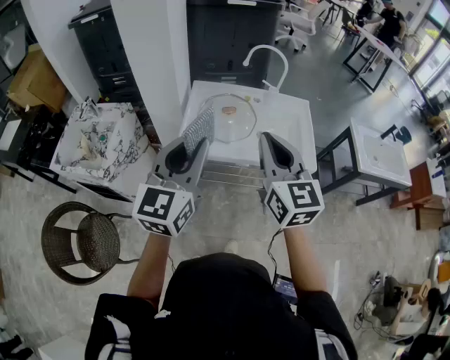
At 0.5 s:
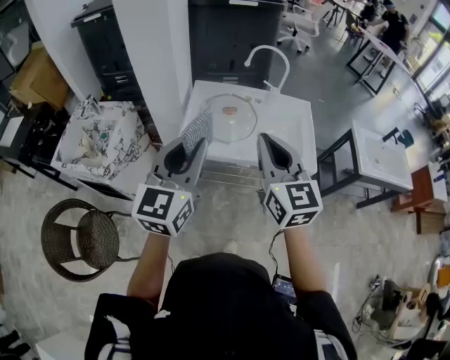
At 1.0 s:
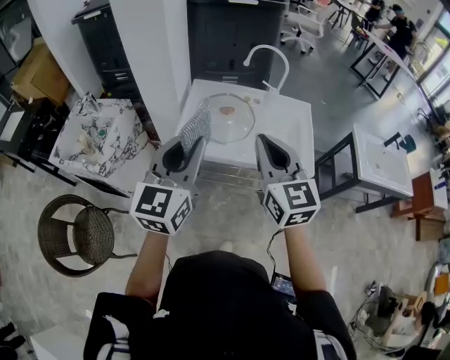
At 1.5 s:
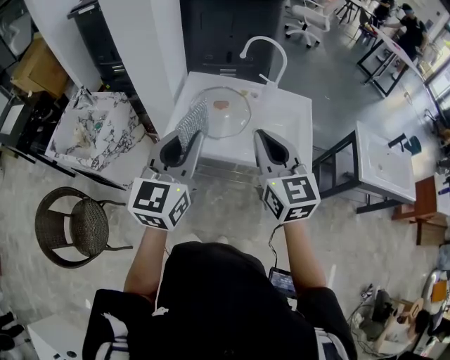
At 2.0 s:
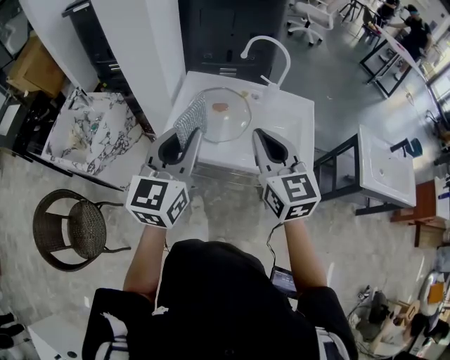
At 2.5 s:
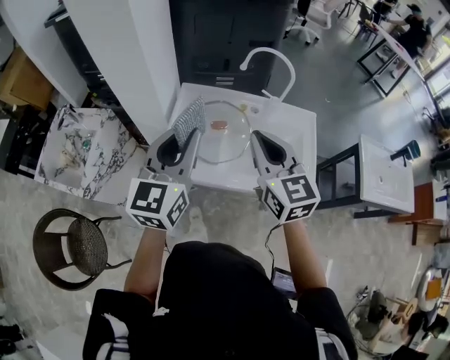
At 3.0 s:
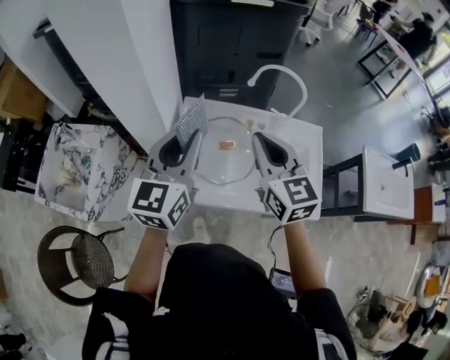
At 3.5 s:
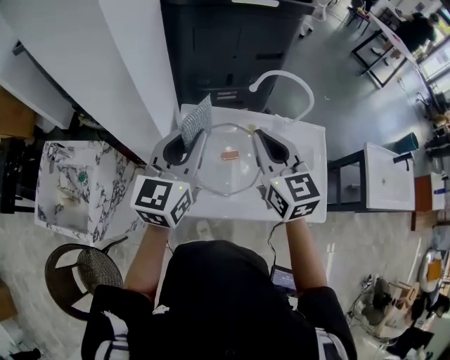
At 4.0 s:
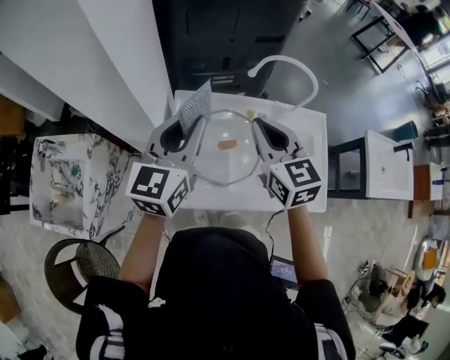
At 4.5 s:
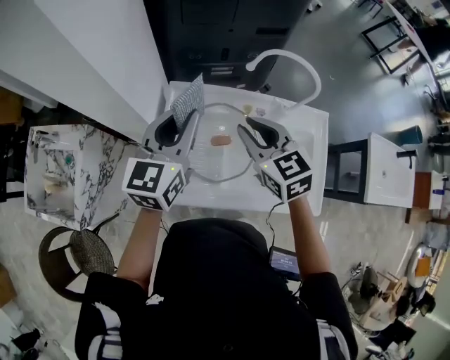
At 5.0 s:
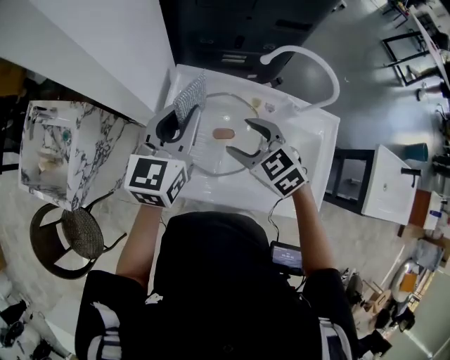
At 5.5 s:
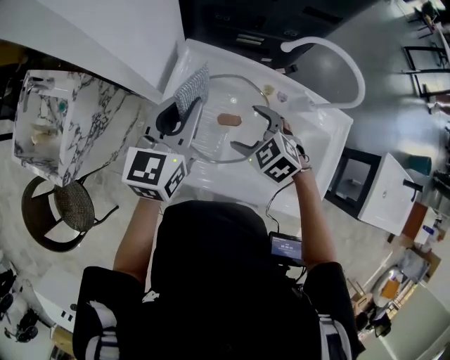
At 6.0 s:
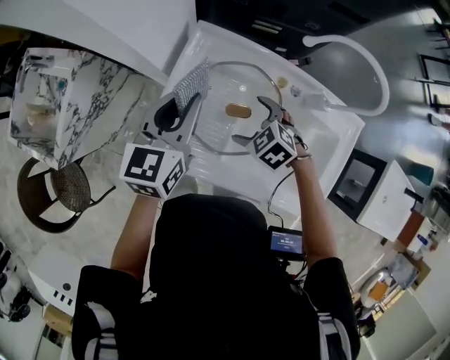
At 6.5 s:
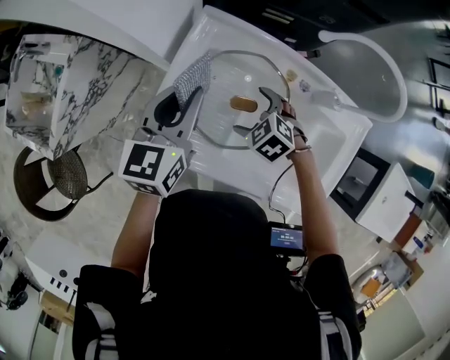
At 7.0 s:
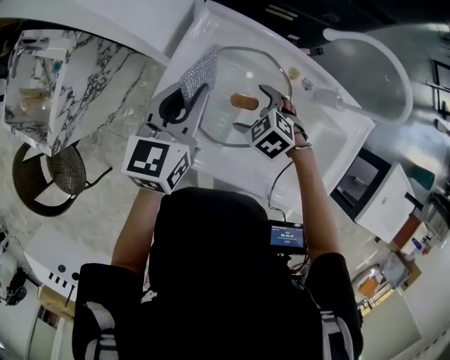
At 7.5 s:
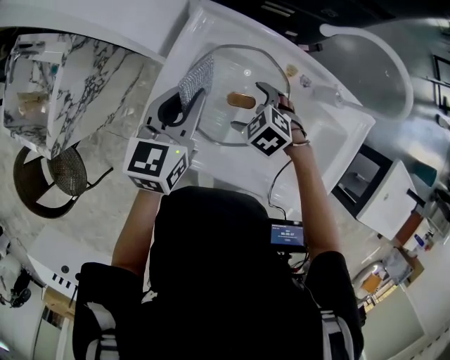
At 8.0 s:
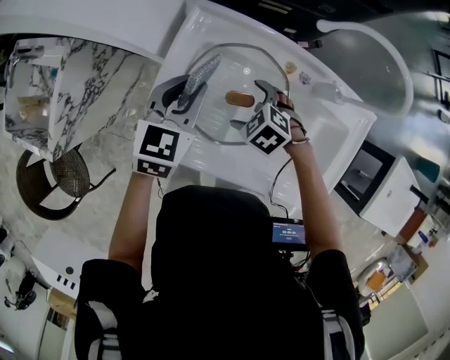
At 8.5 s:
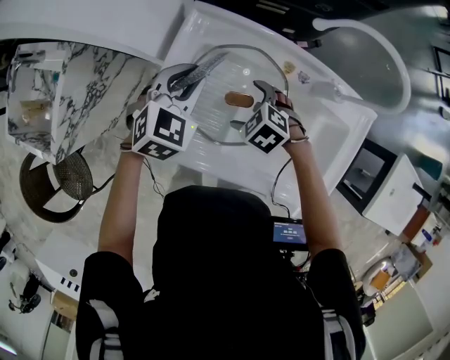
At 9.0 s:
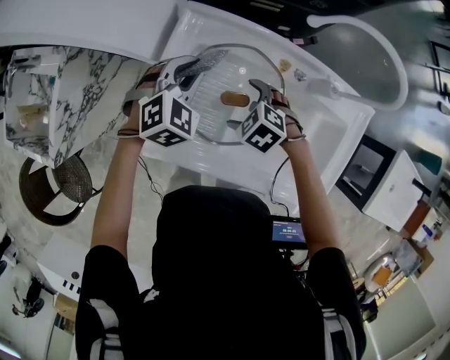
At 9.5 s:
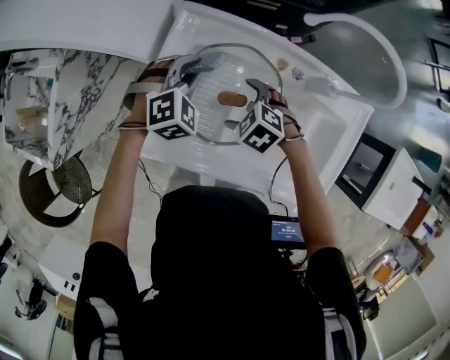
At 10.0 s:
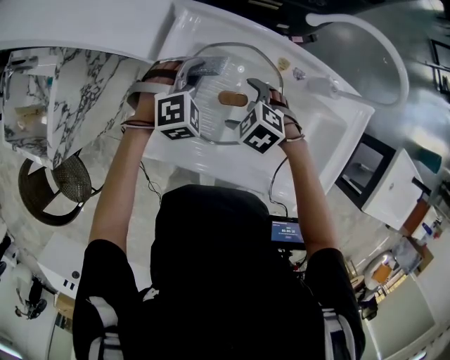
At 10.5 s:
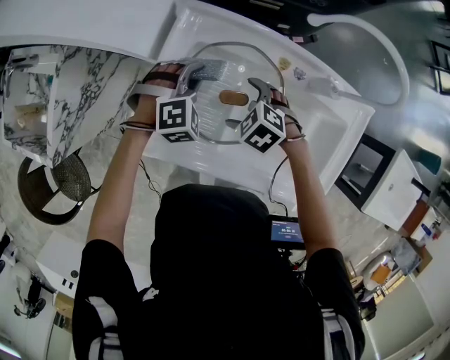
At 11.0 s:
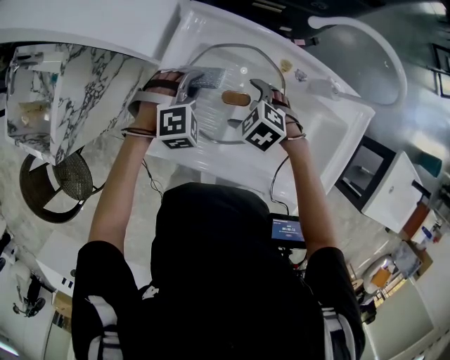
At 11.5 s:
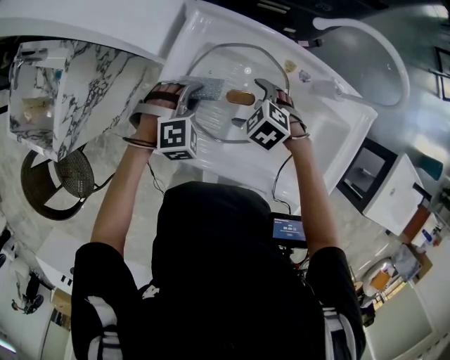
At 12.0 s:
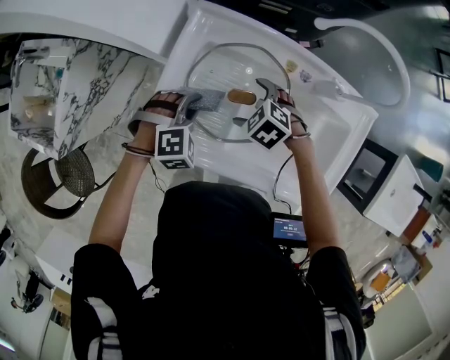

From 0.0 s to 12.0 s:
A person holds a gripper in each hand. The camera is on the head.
From 0.0 s to 2.0 s: The left gripper moves forward and to the right, roughly 10 cm. Meanwhile the right gripper travels forward, to the right and downward by some 15 cm.
From 2.0 s to 4.0 s: Both grippers move forward, roughly 30 cm.
From 4.0 s to 6.0 s: The left gripper goes about 15 cm downward, and swivels roughly 20 degrees; the right gripper goes some 30 cm downward, angles its fingers downward, by some 50 degrees, and opens.
From 6.0 s to 8.0 s: The left gripper moves downward, approximately 10 cm, and rotates approximately 20 degrees.
From 8.0 s to 10.0 s: The left gripper travels downward by about 10 cm, and rolls clockwise, seen from behind, by roughly 60 degrees.
From 10.0 s to 12.0 s: The left gripper moves backward and to the left, about 10 cm.

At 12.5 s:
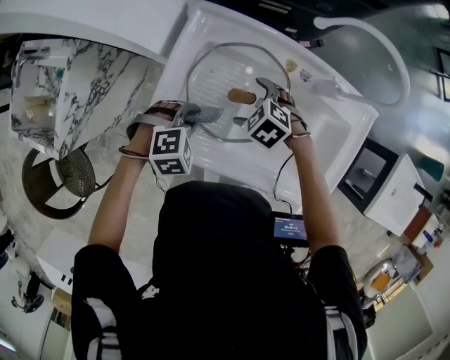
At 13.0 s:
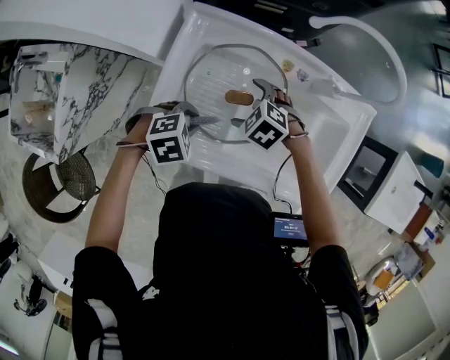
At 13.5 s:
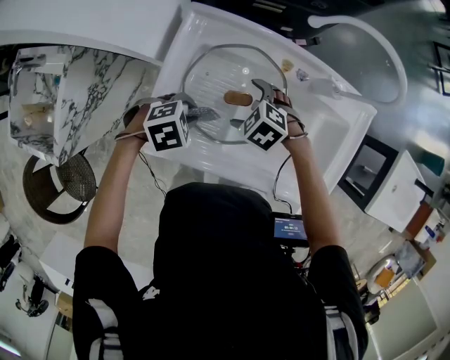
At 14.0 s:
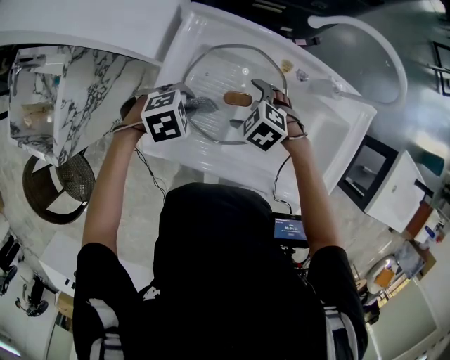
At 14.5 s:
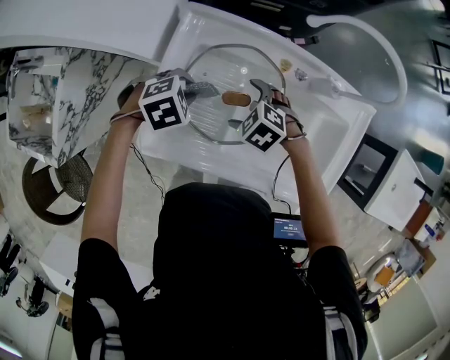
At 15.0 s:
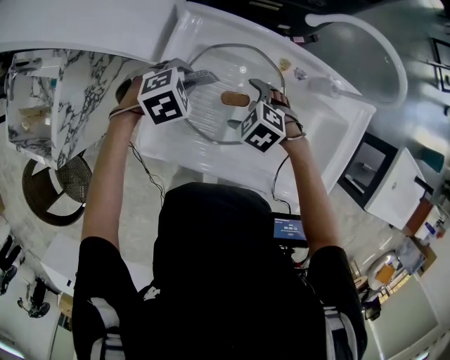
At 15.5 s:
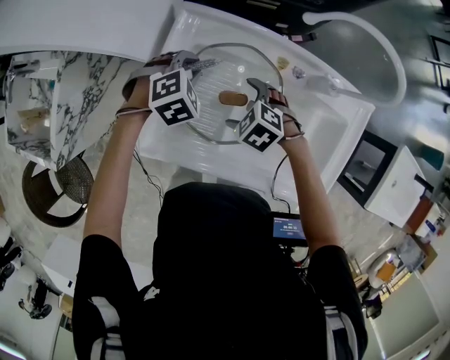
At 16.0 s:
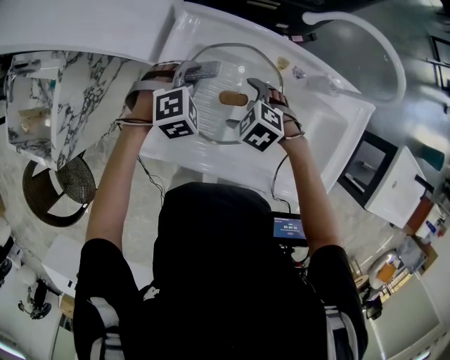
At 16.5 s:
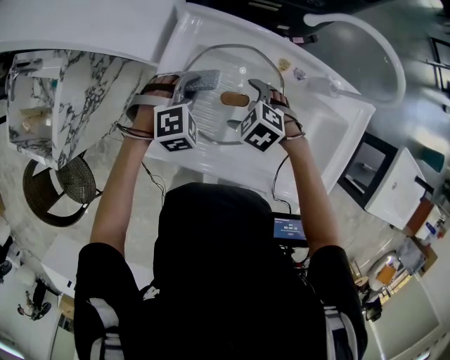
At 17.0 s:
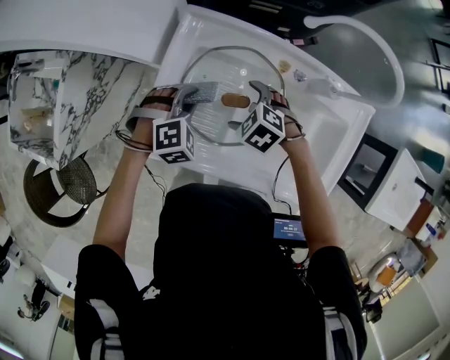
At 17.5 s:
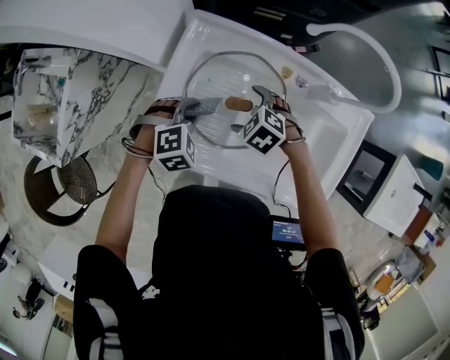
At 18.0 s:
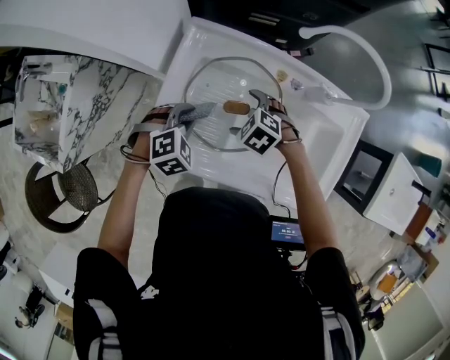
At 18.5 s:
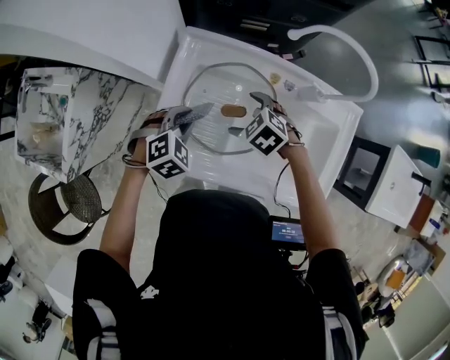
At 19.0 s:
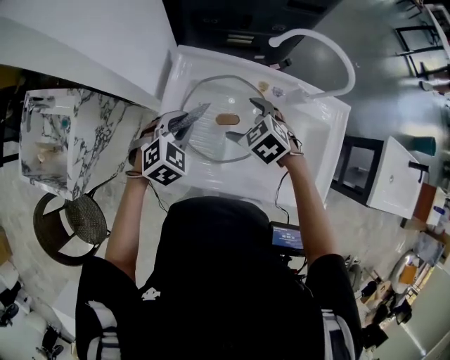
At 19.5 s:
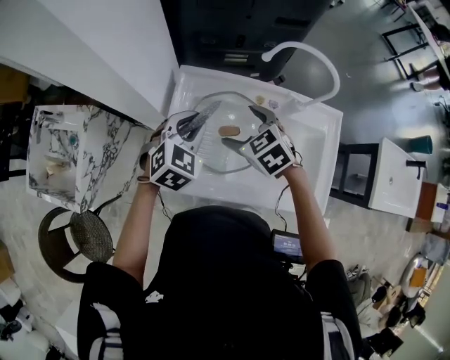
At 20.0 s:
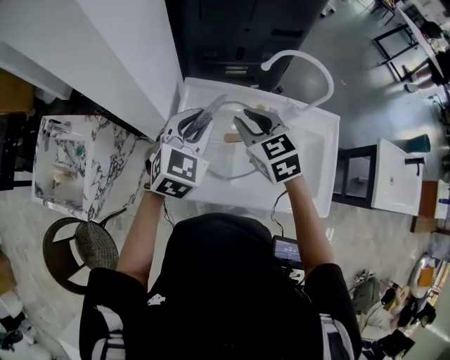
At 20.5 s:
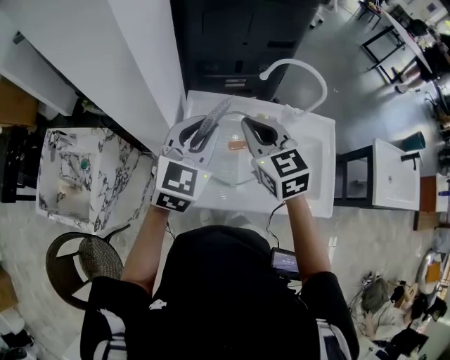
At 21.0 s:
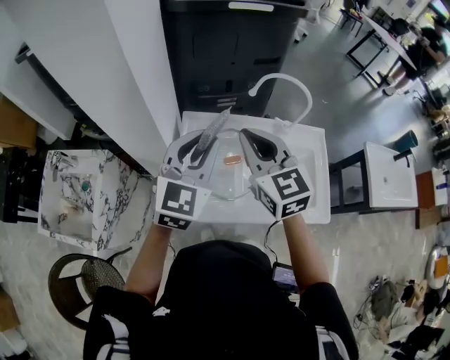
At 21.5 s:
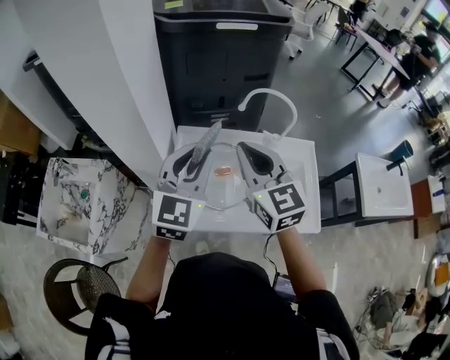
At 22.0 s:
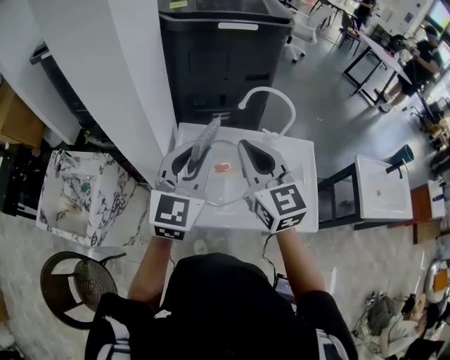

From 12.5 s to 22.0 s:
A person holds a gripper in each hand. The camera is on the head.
From 12.5 s to 14.5 s: The left gripper changes place by approximately 10 cm.
From 14.5 s to 16.5 s: The left gripper swivels about 30 degrees.
From 16.5 s to 18.0 s: The left gripper shifts about 5 cm backward.
From 18.0 s to 20.0 s: Both grippers move upward, approximately 25 cm. The right gripper angles its fingers upward, by roughly 40 degrees, and closes its fingers; the left gripper angles its fingers upward, by approximately 40 degrees.
From 20.0 s to 22.0 s: Both grippers move upward and backward, about 20 cm. The right gripper swivels some 30 degrees, while the left gripper changes its angle by roughly 30 degrees.

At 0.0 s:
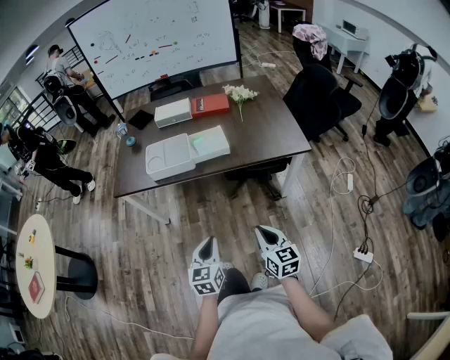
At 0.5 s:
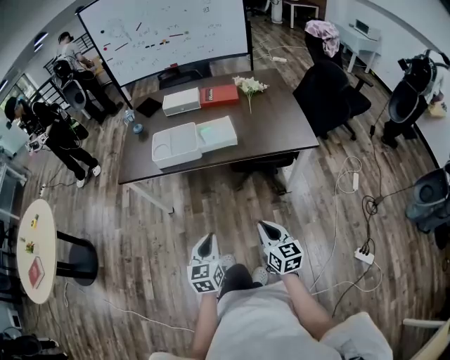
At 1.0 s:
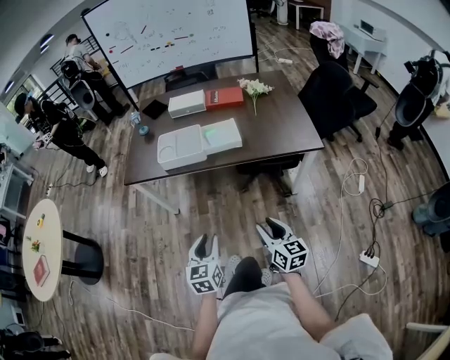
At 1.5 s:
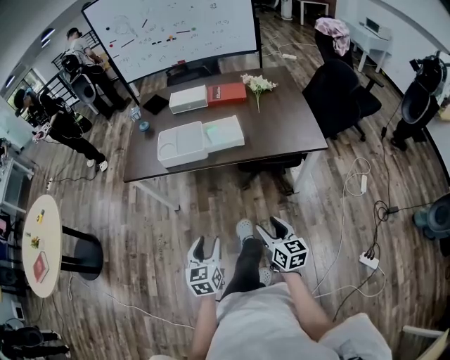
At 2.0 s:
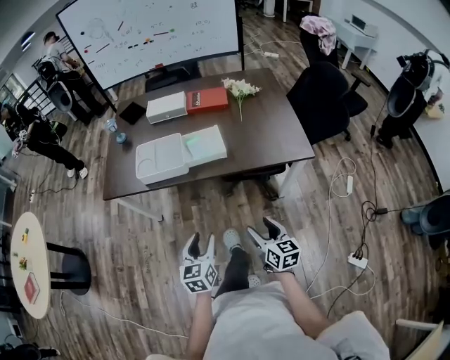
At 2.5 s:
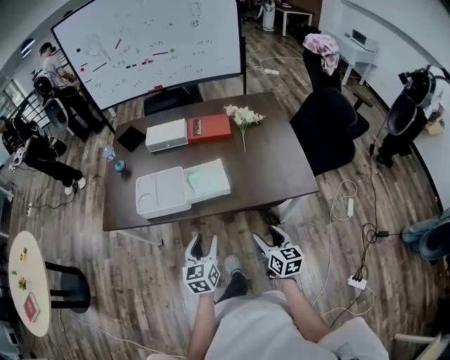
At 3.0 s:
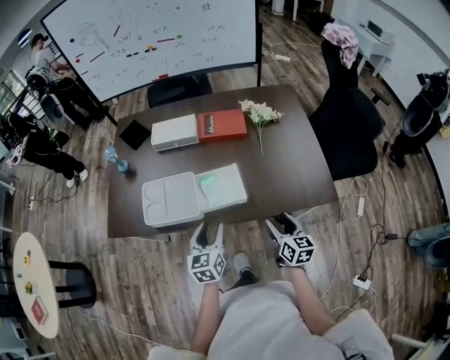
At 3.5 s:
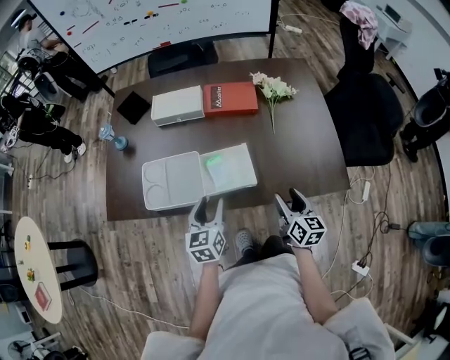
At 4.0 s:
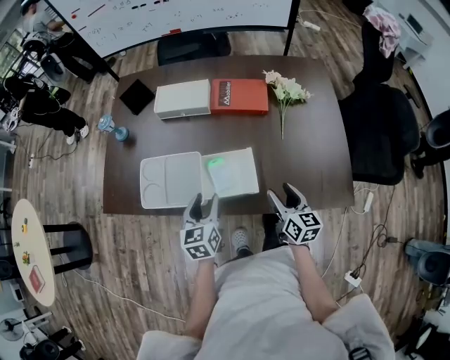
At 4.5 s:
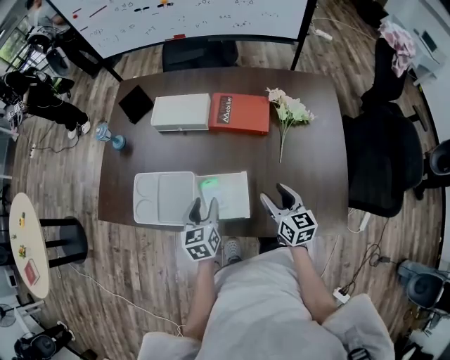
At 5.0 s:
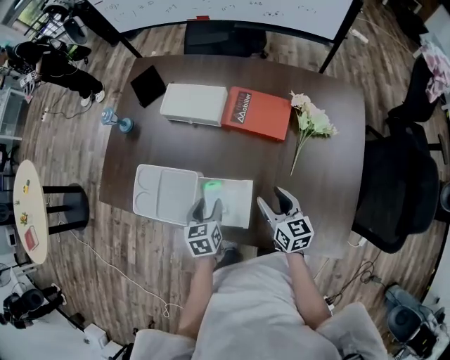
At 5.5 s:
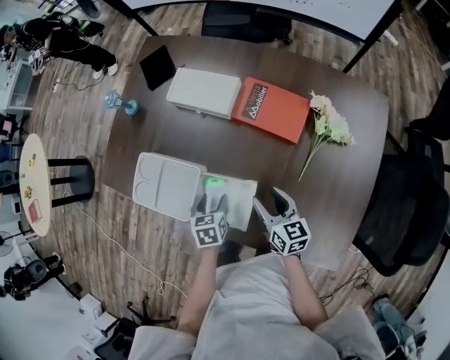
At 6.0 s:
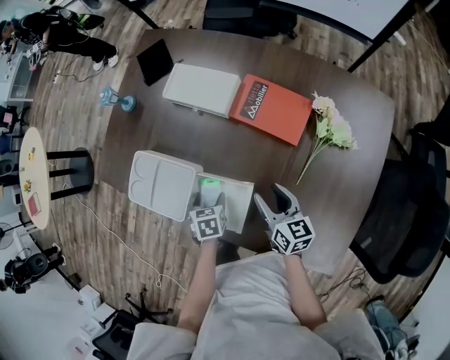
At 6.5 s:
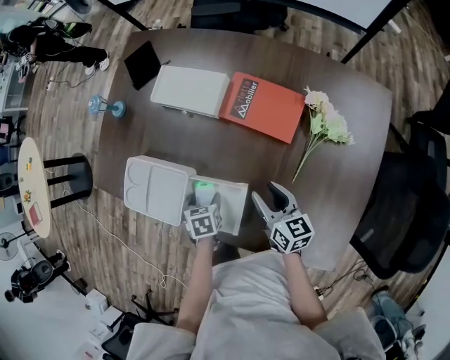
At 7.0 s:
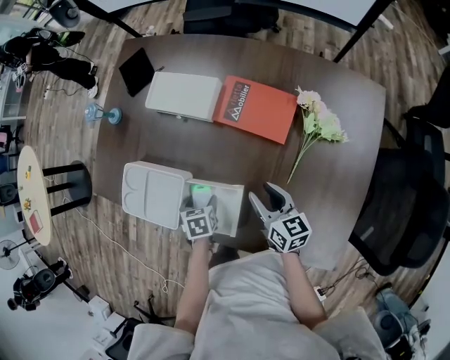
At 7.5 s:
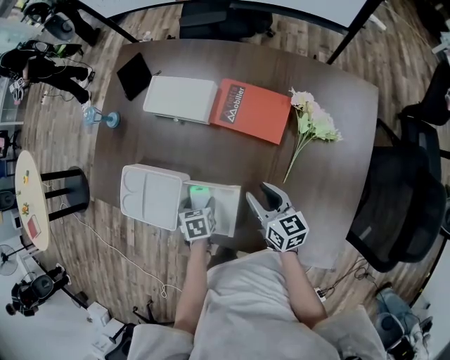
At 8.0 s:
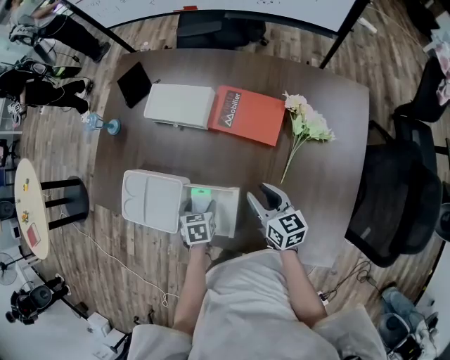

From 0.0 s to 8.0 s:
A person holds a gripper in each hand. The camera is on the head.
From 0.0 s to 2.0 s: Both grippers move forward, approximately 10 cm. The left gripper opens, while the right gripper opens its fingers.
From 2.0 s to 4.0 s: Both grippers move forward, roughly 40 cm.
From 4.0 s to 6.0 s: The right gripper shifts by some 20 cm, and changes its angle by about 30 degrees, while the left gripper moves downward, roughly 15 cm, and angles its fingers downward, by about 40 degrees.
From 6.0 s to 8.0 s: There are only small adjustments of the grippers.
